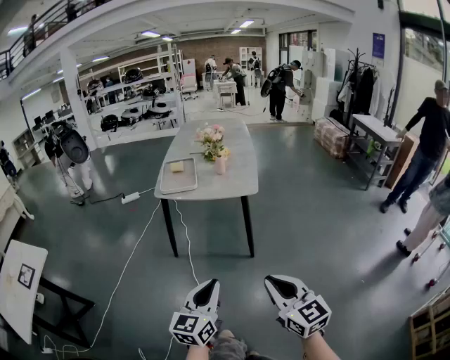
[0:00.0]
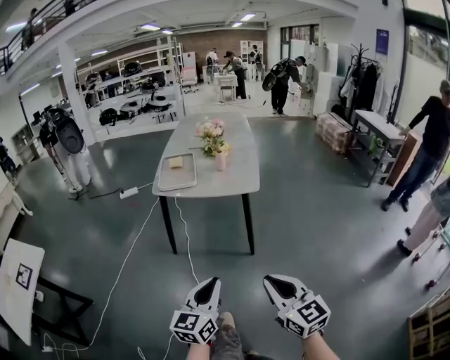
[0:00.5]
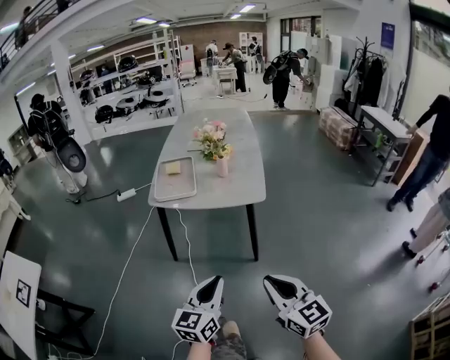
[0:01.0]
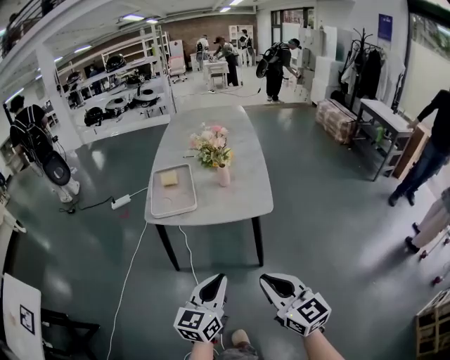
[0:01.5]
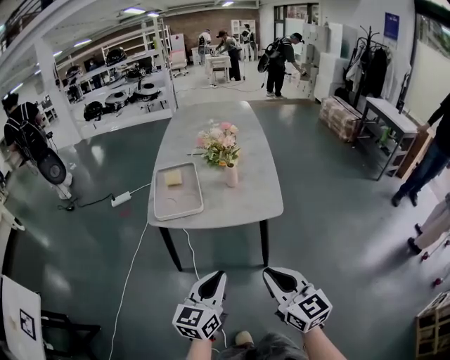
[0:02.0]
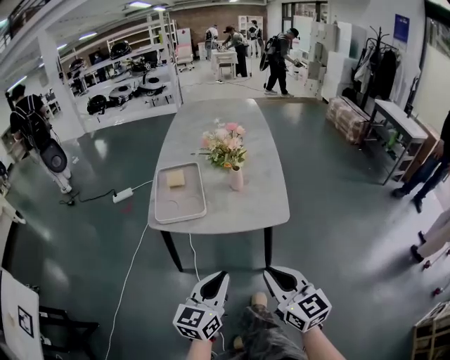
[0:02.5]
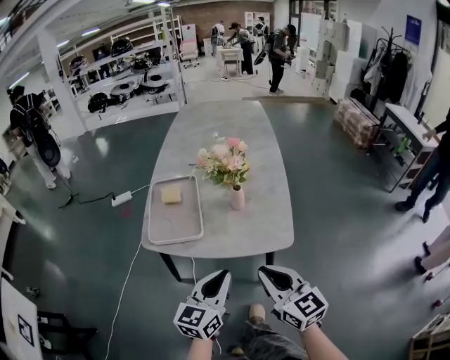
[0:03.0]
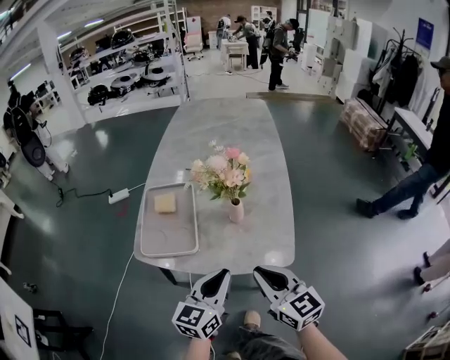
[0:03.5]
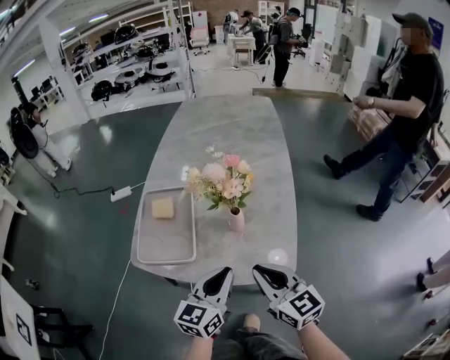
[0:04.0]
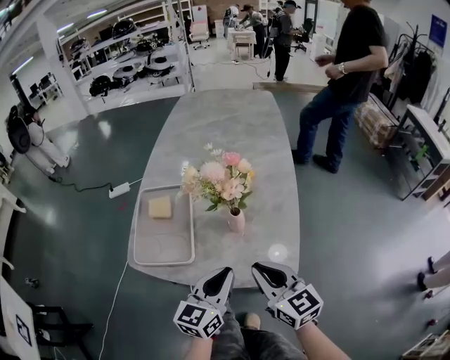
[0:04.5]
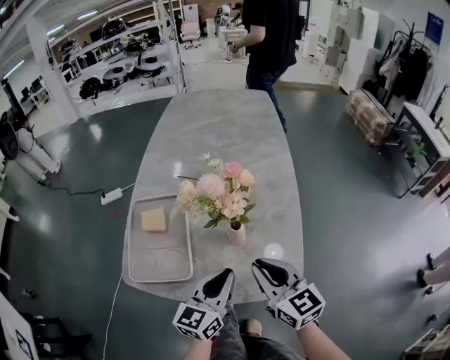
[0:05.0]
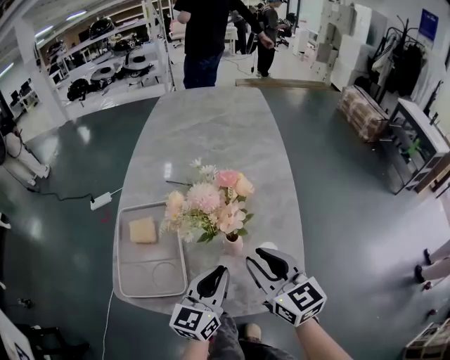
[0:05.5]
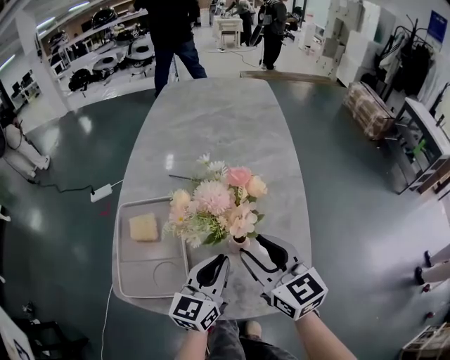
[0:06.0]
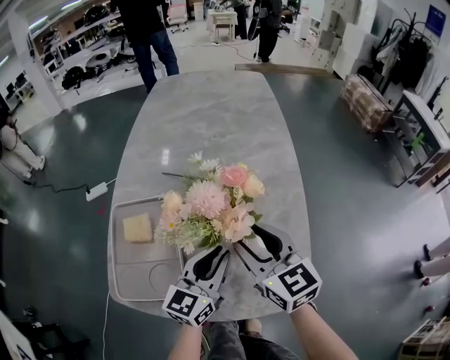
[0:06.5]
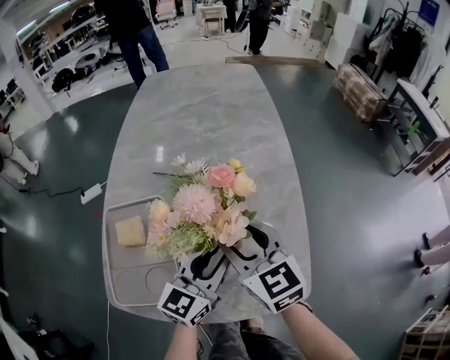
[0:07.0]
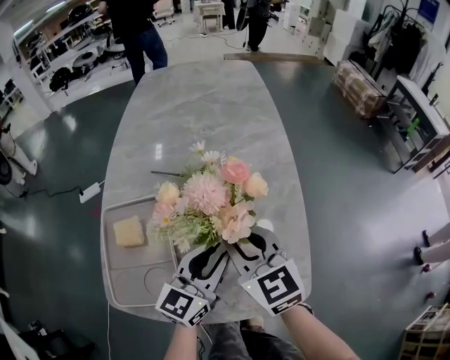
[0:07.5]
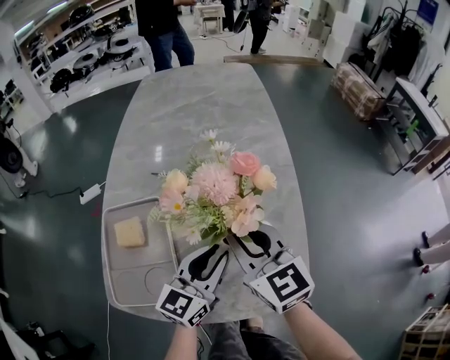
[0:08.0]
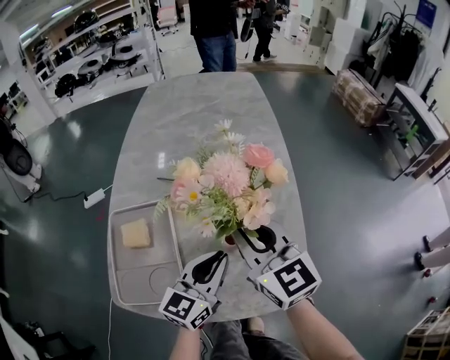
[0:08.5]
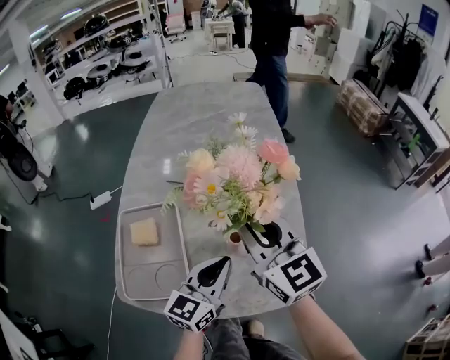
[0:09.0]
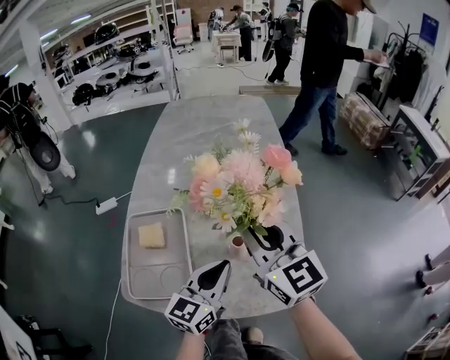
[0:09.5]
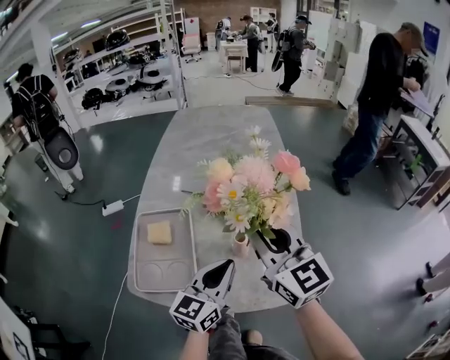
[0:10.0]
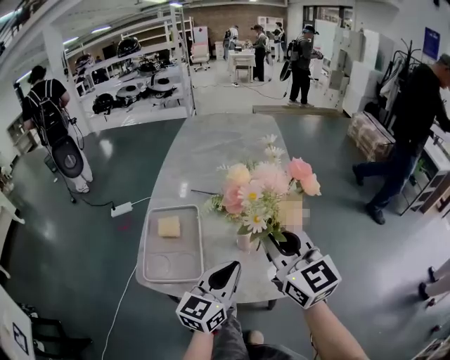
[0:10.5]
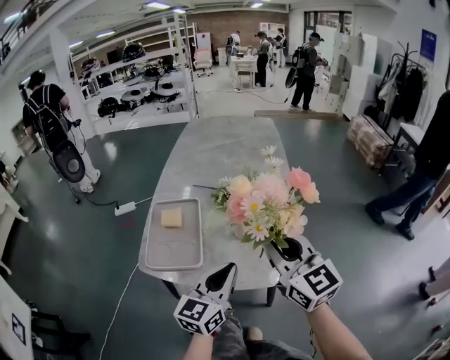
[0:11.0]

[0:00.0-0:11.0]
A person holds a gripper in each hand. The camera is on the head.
0:00.0 to 0:02.0: The grippers both shift forward by some 30 cm.
0:02.0 to 0:03.5: Both grippers travel together forward, approximately 25 cm.
0:03.5 to 0:05.5: The left gripper heads forward and downward, covering roughly 15 cm. Meanwhile the right gripper moves forward, some 20 cm.
0:05.5 to 0:07.5: Both grippers travel together forward, approximately 5 cm. The right gripper opens, then closes again.
0:07.5 to 0:09.0: The right gripper travels upward by roughly 10 cm.
0:09.0 to 0:11.0: Both grippers travel together backward and upward, roughly 15 cm.

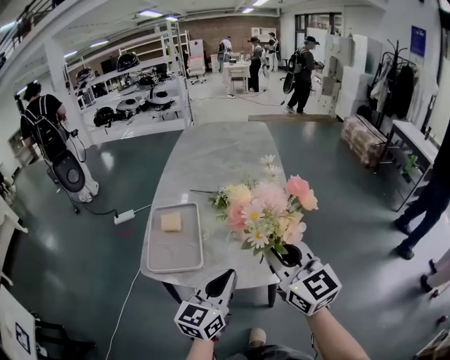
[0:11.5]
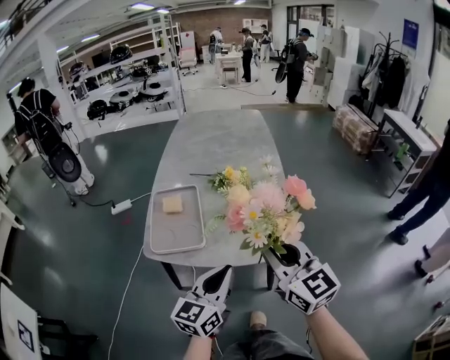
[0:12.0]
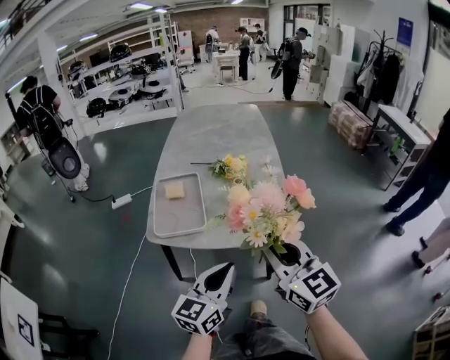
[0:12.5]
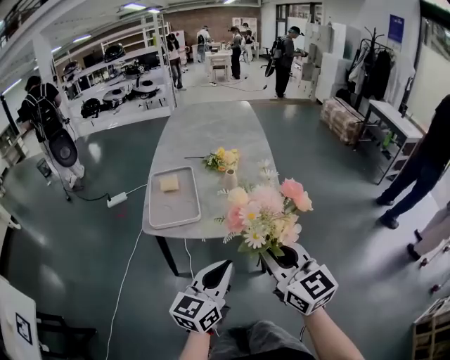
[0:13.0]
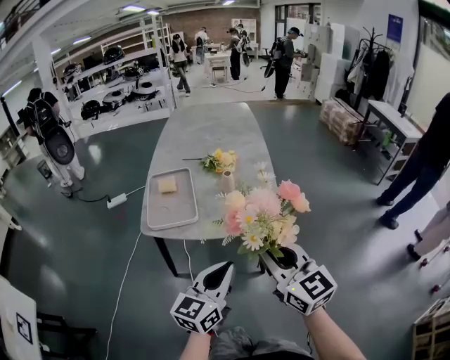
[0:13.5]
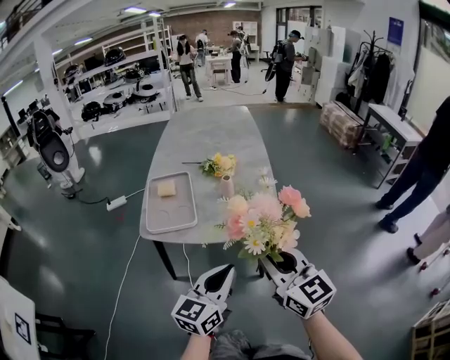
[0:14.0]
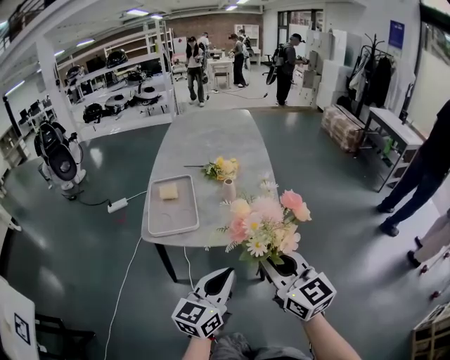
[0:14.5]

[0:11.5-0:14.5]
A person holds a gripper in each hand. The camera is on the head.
0:11.5 to 0:13.0: Both grippers move backward, roughly 20 cm.
0:13.0 to 0:14.5: There are only small adjustments of the grippers.

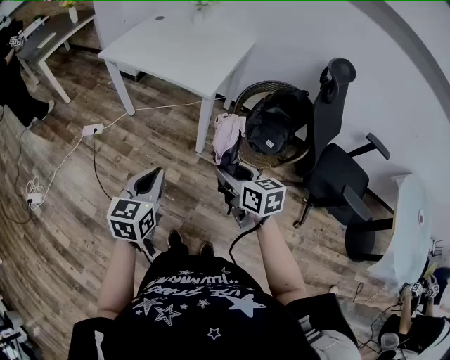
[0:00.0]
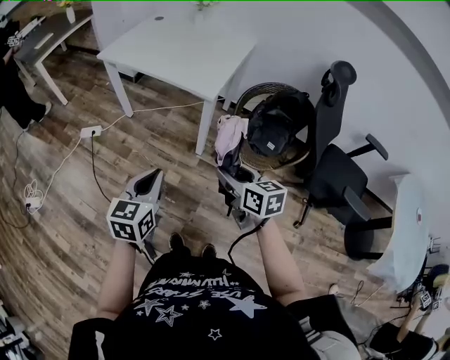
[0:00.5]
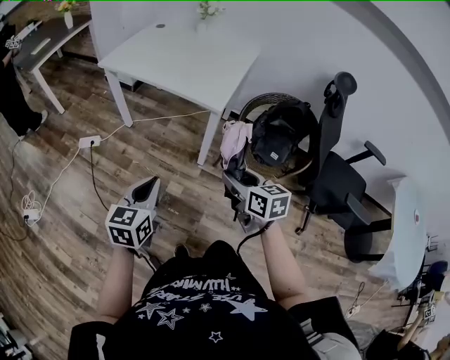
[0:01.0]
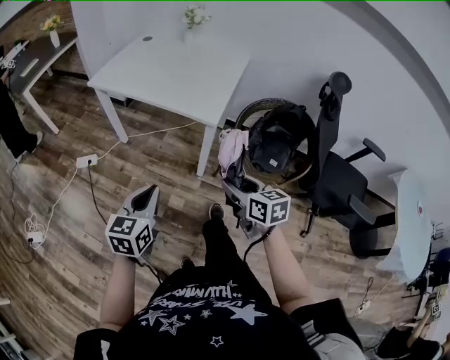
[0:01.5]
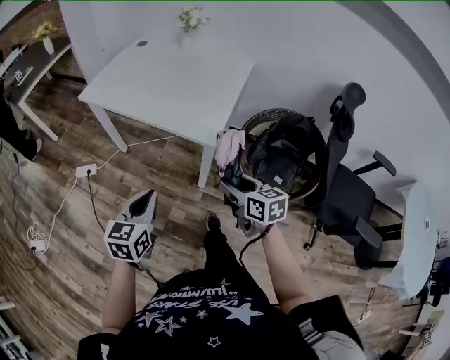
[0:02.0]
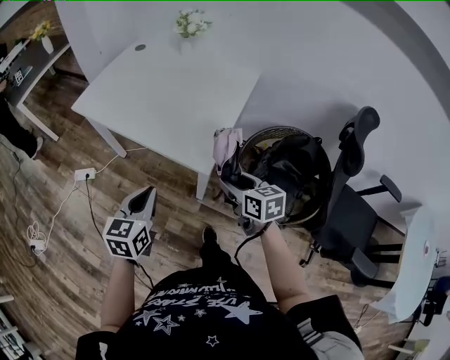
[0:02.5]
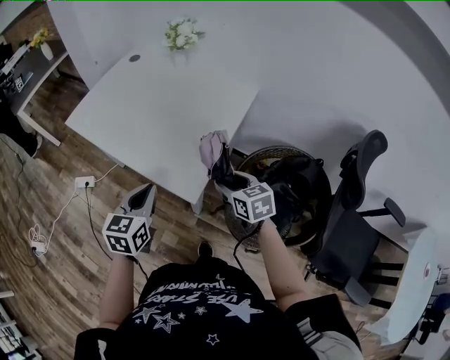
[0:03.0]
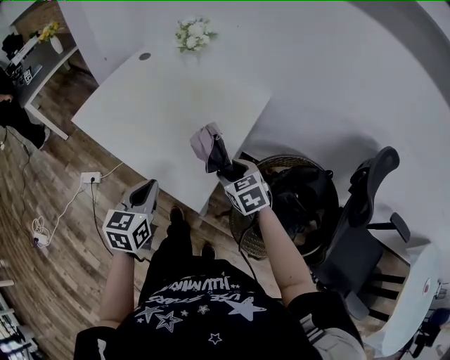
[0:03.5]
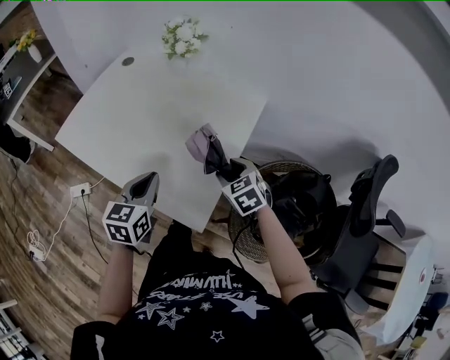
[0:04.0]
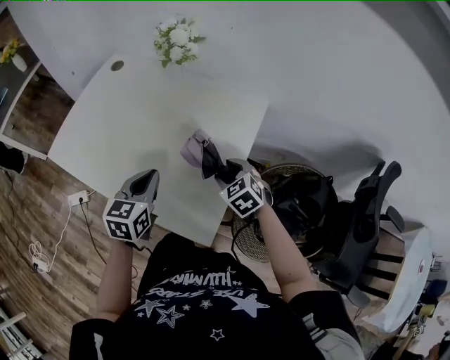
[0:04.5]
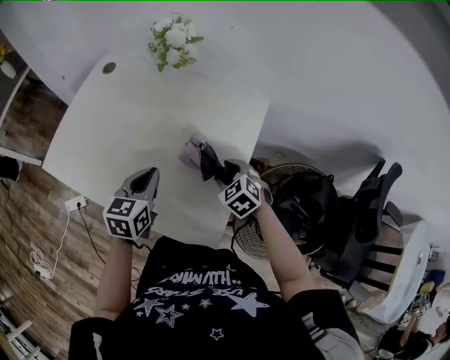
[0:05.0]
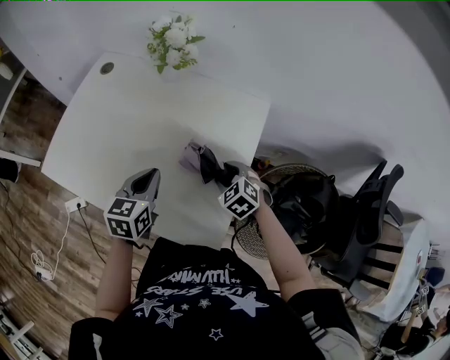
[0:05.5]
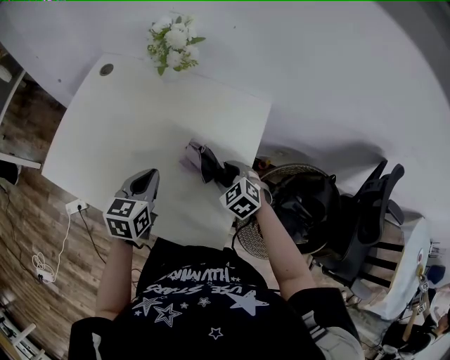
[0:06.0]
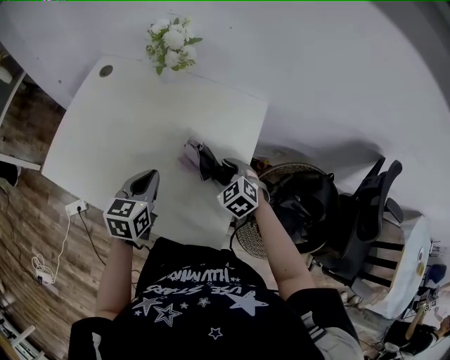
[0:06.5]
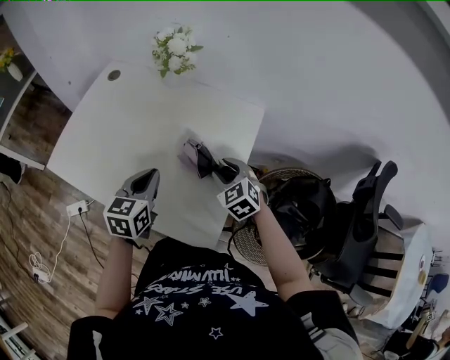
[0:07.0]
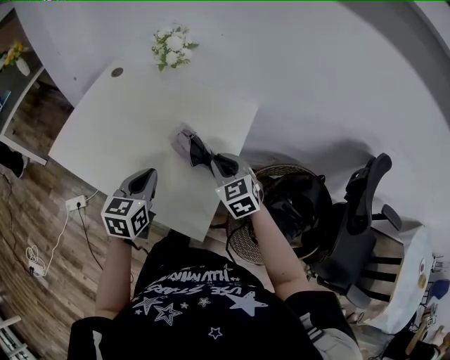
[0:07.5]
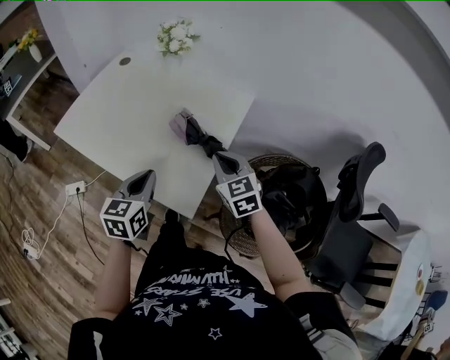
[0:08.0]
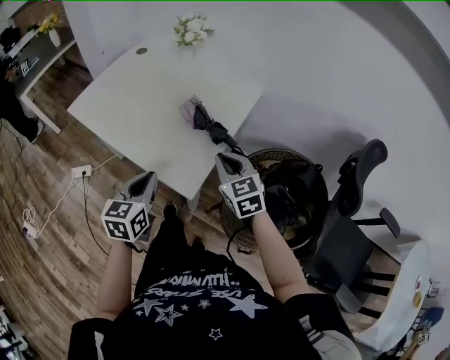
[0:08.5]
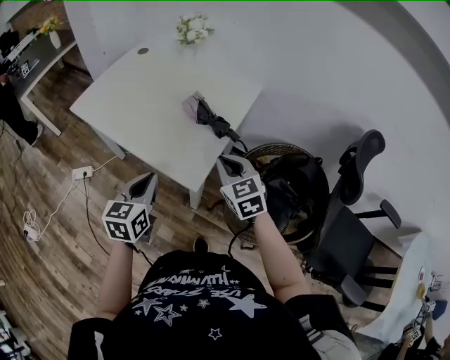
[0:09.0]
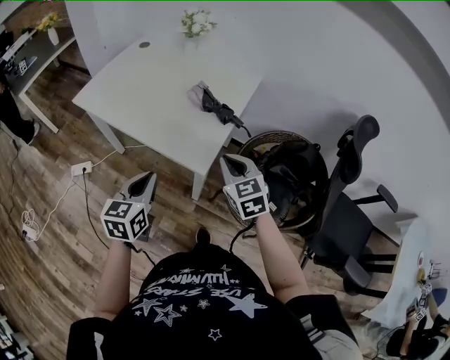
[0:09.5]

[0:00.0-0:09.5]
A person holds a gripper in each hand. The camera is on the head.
0:00.0 to 0:02.0: Both grippers move forward, about 20 cm.
0:02.0 to 0:04.0: Both grippers travel together forward, roughly 35 cm. The right gripper turns by roughly 40 degrees.
0:04.0 to 0:05.5: The left gripper moves forward, roughly 10 cm; the right gripper moves forward and downward, some 10 cm.
0:05.5 to 0:07.5: The right gripper travels upward by about 10 cm, turns by about 30 degrees, and closes up; the left gripper moves backward, approximately 5 cm.
0:07.5 to 0:09.5: The two grippers go about 25 cm backward.

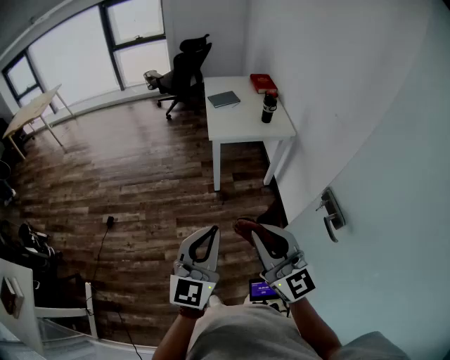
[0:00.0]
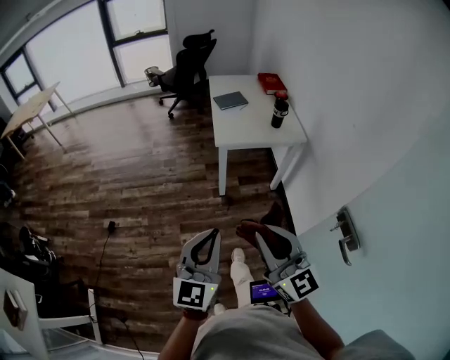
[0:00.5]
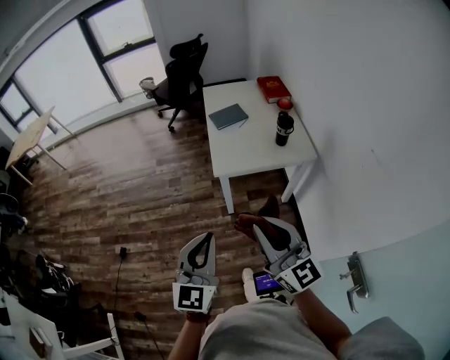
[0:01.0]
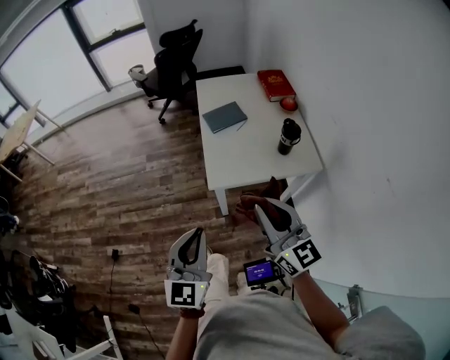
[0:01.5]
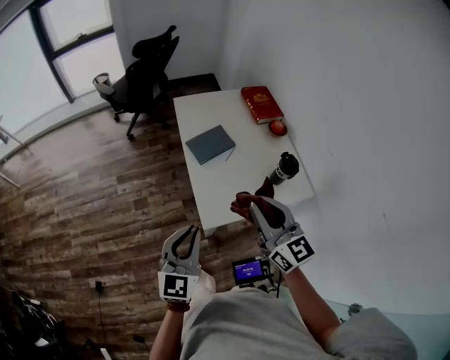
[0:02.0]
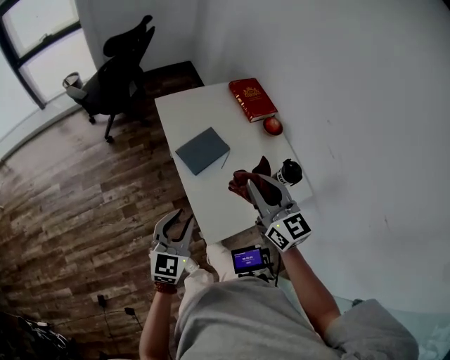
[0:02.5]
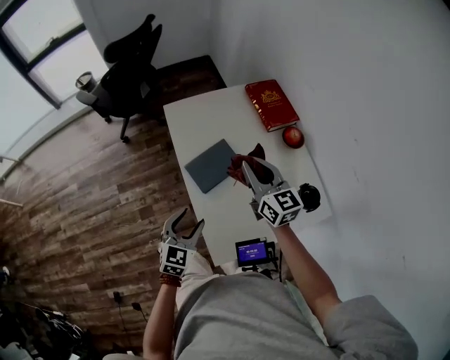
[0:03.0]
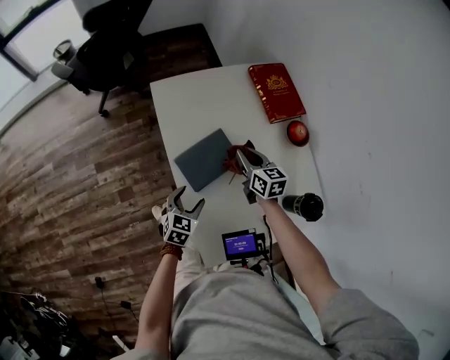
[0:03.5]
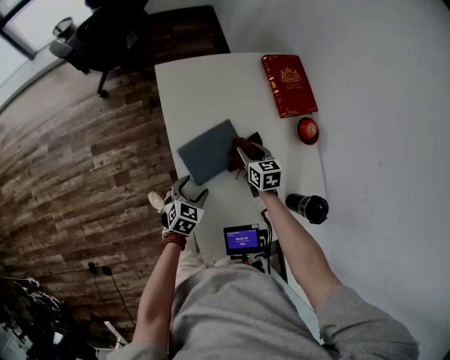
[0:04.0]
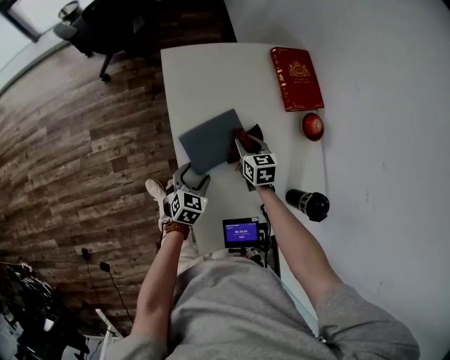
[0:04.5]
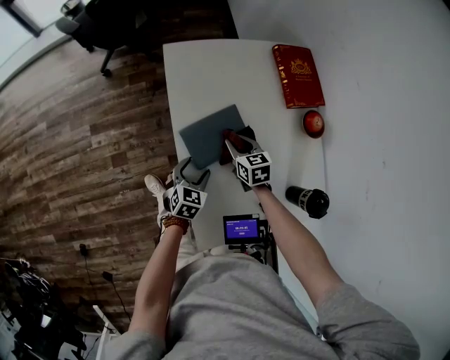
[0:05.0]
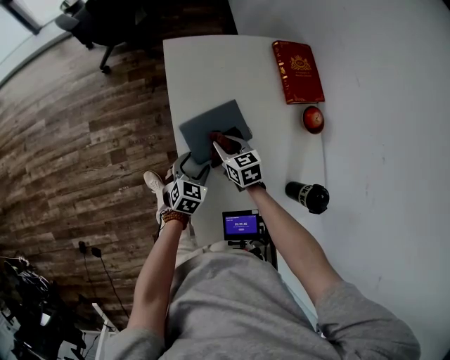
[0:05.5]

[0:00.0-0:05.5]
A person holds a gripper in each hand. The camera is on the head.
0:00.0 to 0:02.0: The pair of grippers is taken forward, about 70 cm.
0:02.0 to 0:03.5: The grippers both shift forward and downward by about 50 cm. The right gripper changes its angle by roughly 30 degrees, while the left gripper tips its fingers downward by about 30 degrees, and opens.
0:03.5 to 0:05.5: The right gripper is displaced to the left, downward and backward by approximately 15 cm, and turns by approximately 30 degrees; the left gripper ends up approximately 5 cm from where it was.
